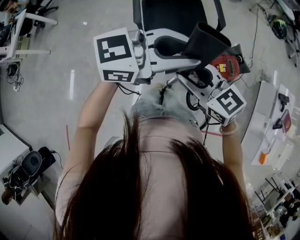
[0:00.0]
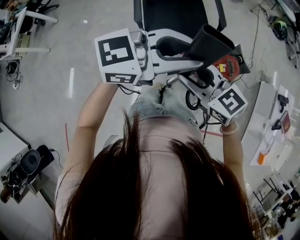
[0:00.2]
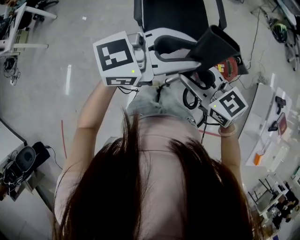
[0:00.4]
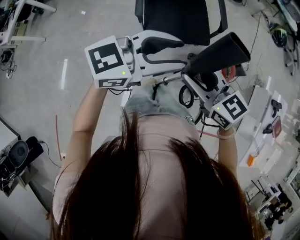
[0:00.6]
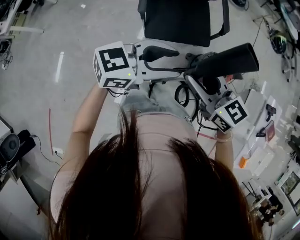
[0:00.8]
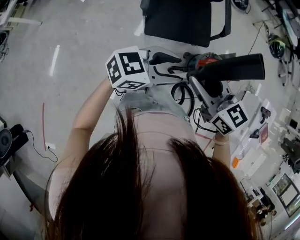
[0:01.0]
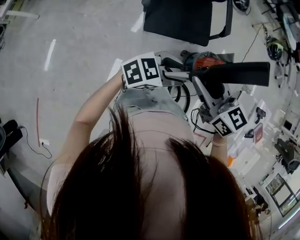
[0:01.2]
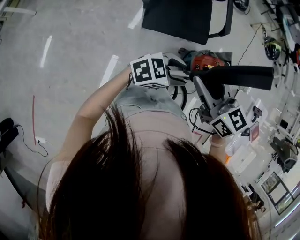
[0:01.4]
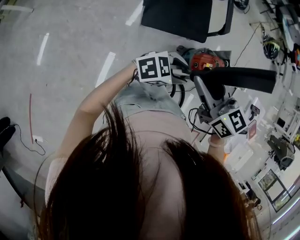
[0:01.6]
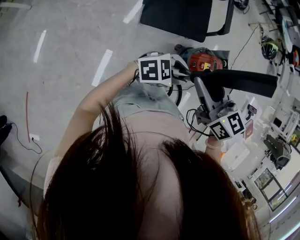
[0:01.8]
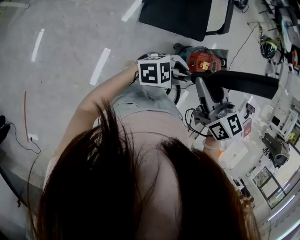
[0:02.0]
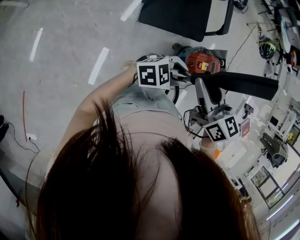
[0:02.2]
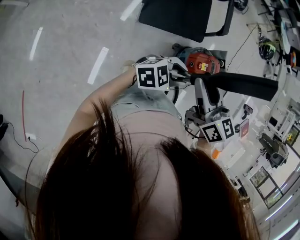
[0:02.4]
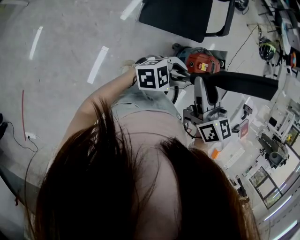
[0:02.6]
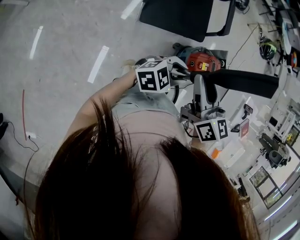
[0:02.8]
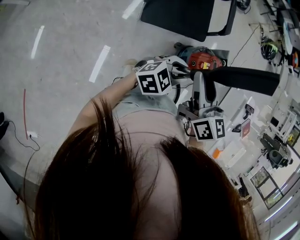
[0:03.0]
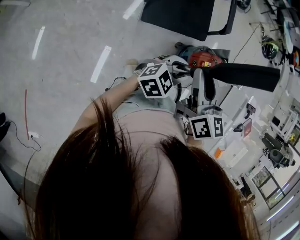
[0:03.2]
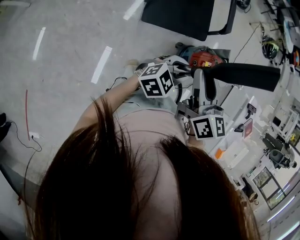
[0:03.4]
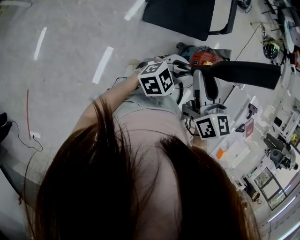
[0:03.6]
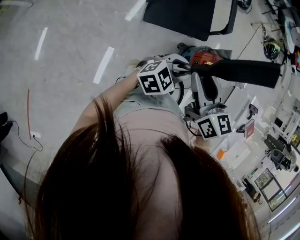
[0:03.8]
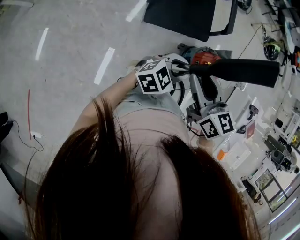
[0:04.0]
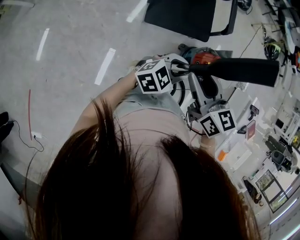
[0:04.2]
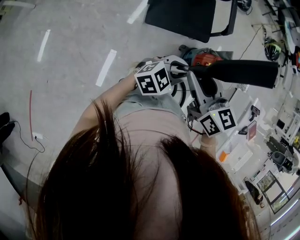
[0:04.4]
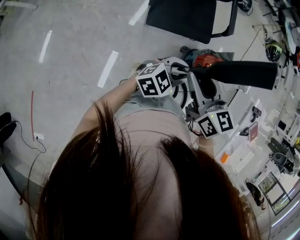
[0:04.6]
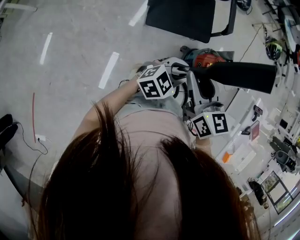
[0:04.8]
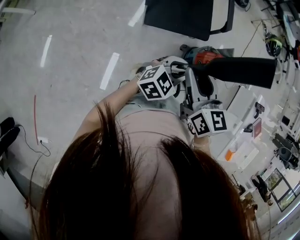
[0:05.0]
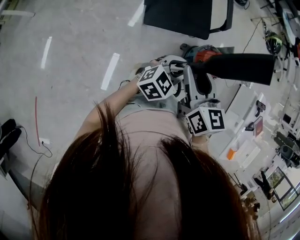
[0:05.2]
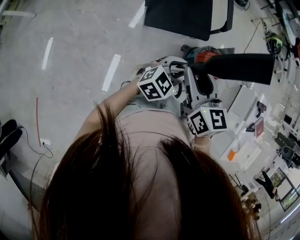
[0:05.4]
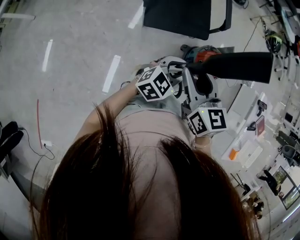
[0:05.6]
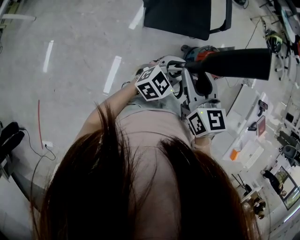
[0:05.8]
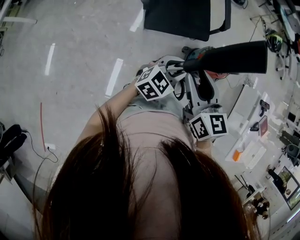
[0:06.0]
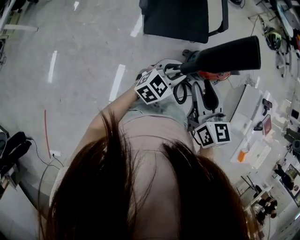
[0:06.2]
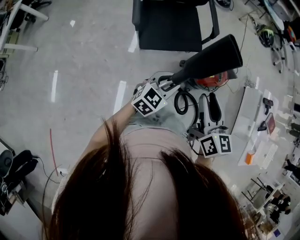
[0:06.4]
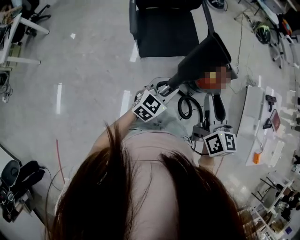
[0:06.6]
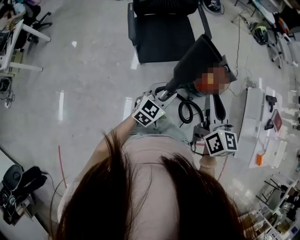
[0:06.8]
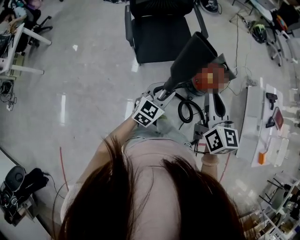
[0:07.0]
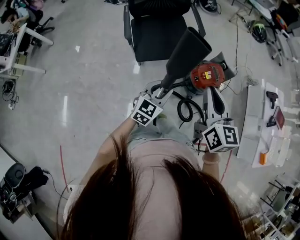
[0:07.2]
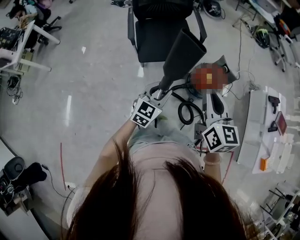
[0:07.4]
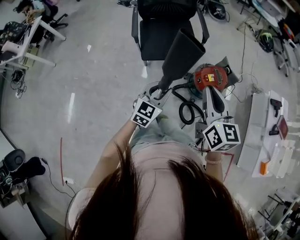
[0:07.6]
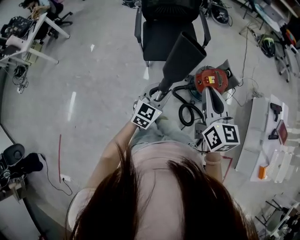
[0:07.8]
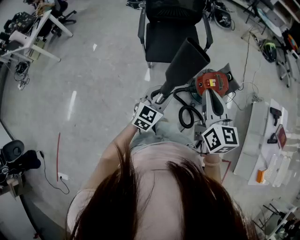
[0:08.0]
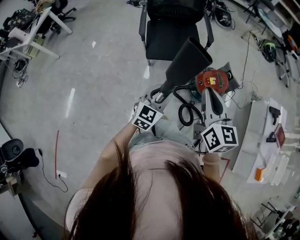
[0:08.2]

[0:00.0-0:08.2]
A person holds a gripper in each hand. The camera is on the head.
0:00.0 to 0:01.6: The left gripper travels downward by approximately 25 cm, swivels about 20 degrees, and opens its fingers.
0:01.6 to 0:03.2: The right gripper swivels about 30 degrees.
0:05.0 to 0:06.6: The right gripper heads to the right, covering approximately 10 cm, and turns by roughly 30 degrees.
0:06.6 to 0:08.2: The right gripper shifts some 15 cm to the right and backward, and closes up; the left gripper shifts roughly 15 cm backward and to the right, and swivels roughly 20 degrees.

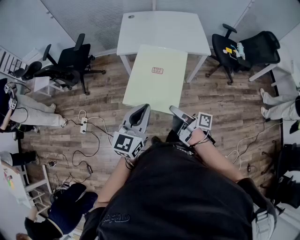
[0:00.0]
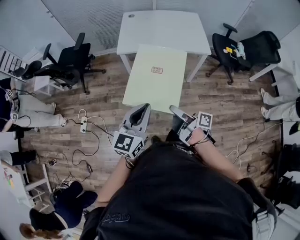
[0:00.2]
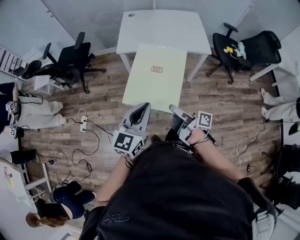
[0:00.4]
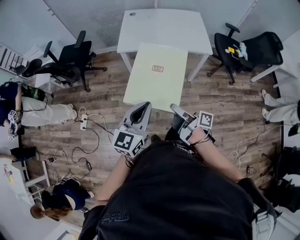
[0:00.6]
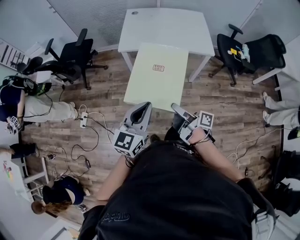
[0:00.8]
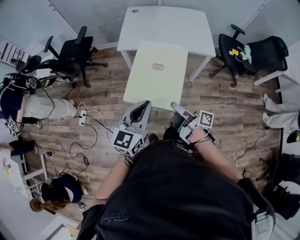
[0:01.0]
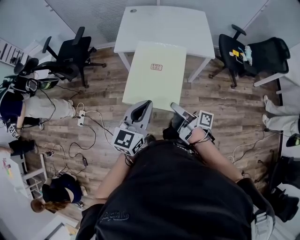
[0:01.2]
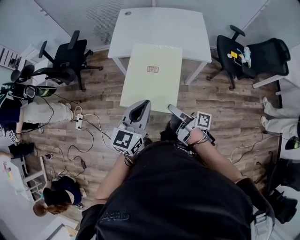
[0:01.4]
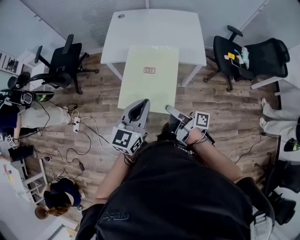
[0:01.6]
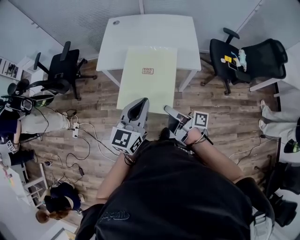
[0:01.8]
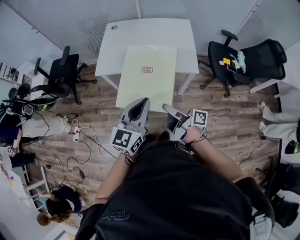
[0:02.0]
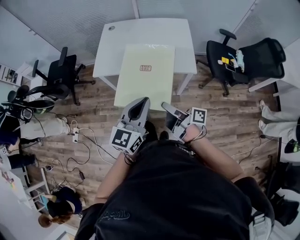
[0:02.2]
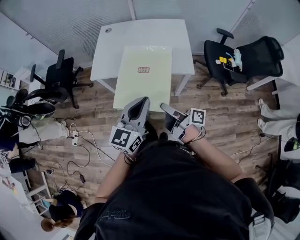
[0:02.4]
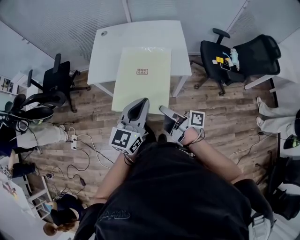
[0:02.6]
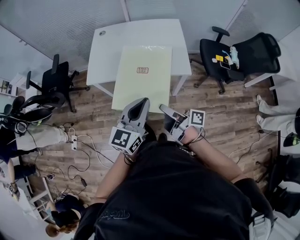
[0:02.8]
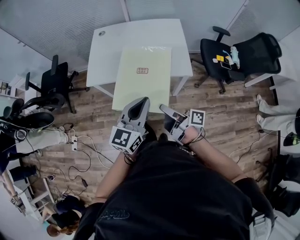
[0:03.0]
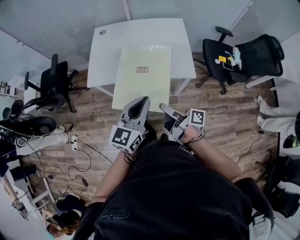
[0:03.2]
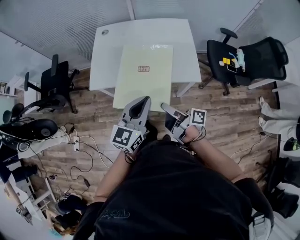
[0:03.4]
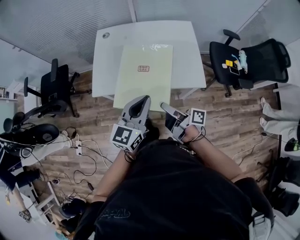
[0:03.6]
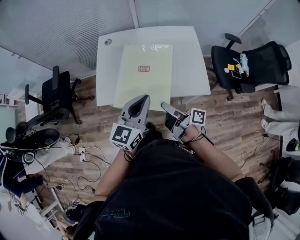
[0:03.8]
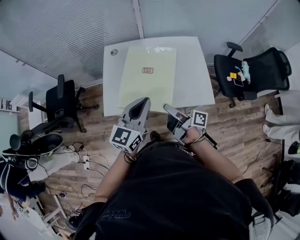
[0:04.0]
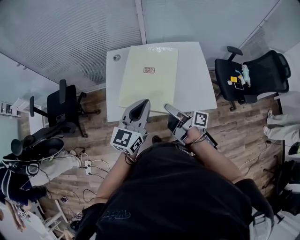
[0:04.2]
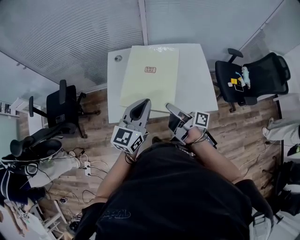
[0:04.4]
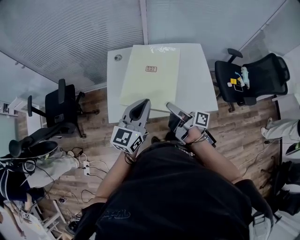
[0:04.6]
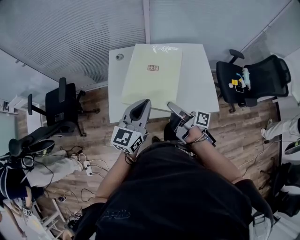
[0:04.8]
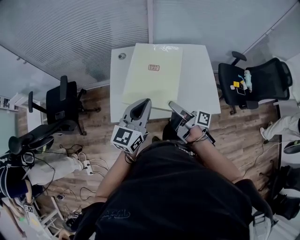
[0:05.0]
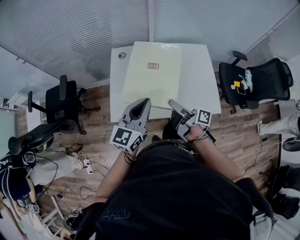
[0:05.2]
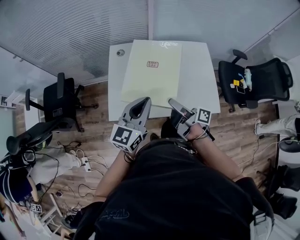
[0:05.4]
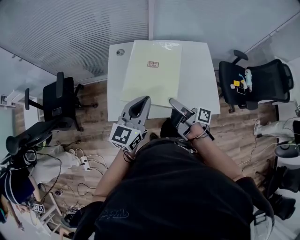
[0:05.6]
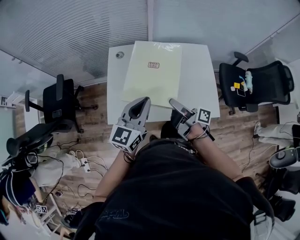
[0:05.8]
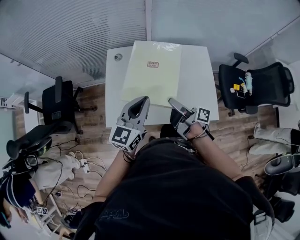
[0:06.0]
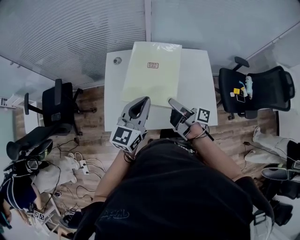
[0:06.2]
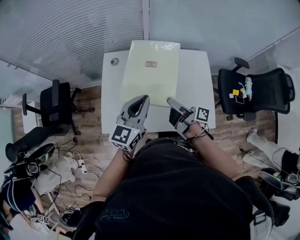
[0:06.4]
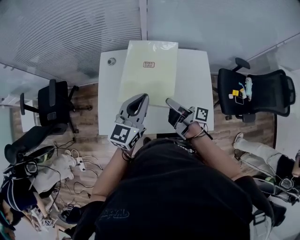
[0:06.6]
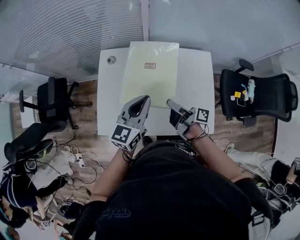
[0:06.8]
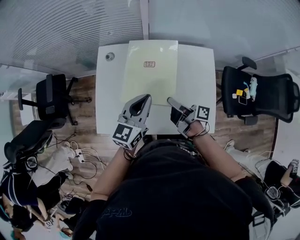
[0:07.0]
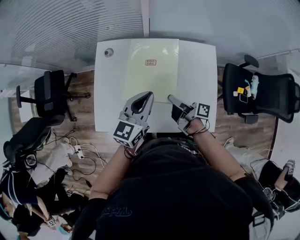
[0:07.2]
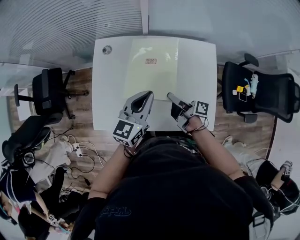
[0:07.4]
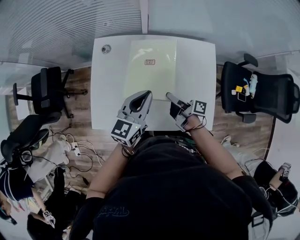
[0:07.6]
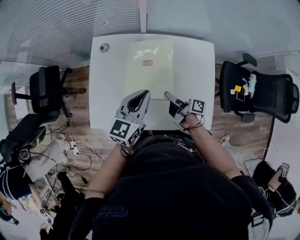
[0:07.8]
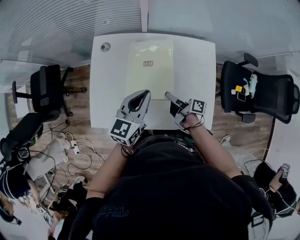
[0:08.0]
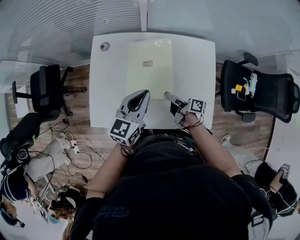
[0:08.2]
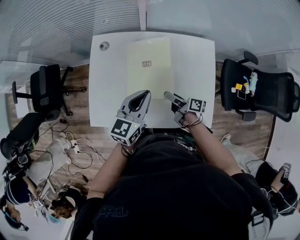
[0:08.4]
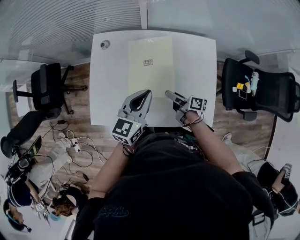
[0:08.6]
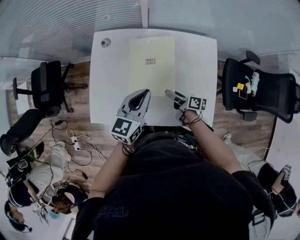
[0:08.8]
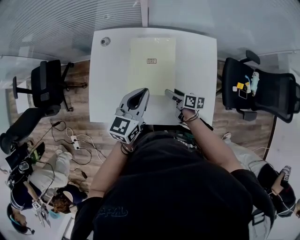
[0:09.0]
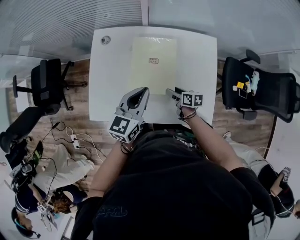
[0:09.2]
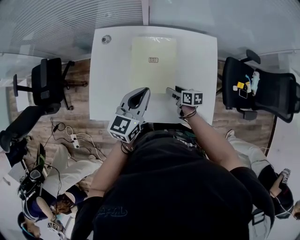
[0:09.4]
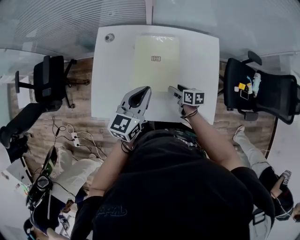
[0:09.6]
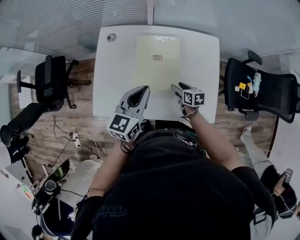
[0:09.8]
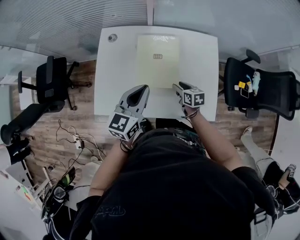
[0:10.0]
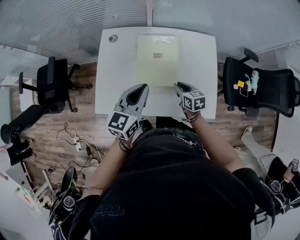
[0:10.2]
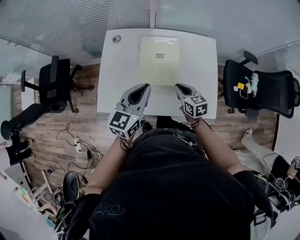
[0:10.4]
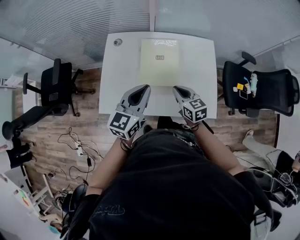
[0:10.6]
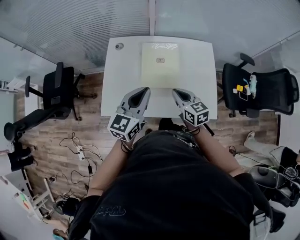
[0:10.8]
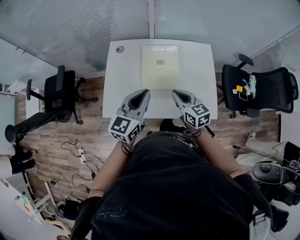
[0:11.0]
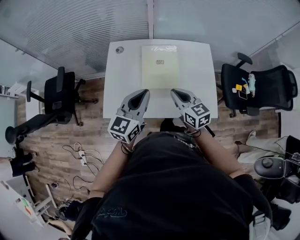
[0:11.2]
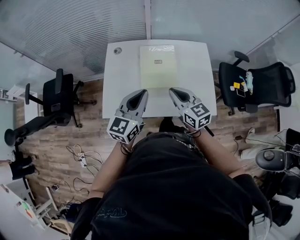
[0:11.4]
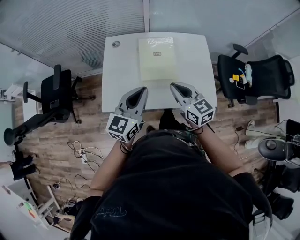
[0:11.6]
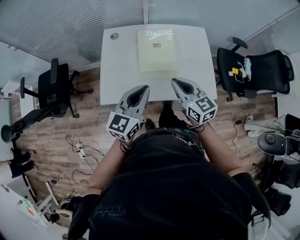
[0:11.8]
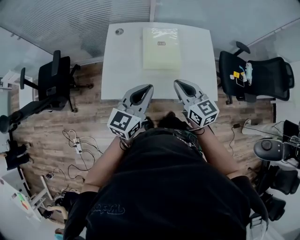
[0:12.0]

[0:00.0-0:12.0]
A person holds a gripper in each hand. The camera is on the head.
0:00.0 to 0:01.6: Both grippers travel together to the right and forward, some 20 cm.
0:01.6 to 0:03.0: The right gripper travels forward and to the right by some 10 cm; the left gripper goes roughly 15 cm to the right and forward.
0:03.0 to 0:04.4: The two grippers go roughly 30 cm forward and to the left.
0:04.4 to 0:06.0: The grippers both shift forward by some 10 cm.
0:06.0 to 0:07.6: The left gripper is displaced forward, downward and to the right by roughly 15 cm. Meanwhile the right gripper is displaced downward, forward and to the right by roughly 15 cm.
0:07.6 to 0:09.0: The right gripper goes about 10 cm downward, and changes its angle by roughly 30 degrees.
0:09.0 to 0:10.4: The right gripper is displaced upward by roughly 15 cm, rotates around the line of its fingers by approximately 40 degrees, counterclockwise from behind, and closes up. Meanwhile the left gripper travels backward and upward by about 10 cm.
0:10.4 to 0:12.0: The left gripper moves backward, roughly 10 cm. The right gripper goes approximately 20 cm upward, backward and to the left.

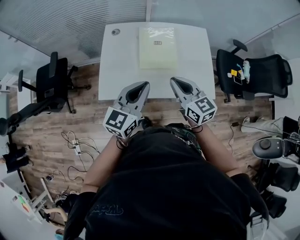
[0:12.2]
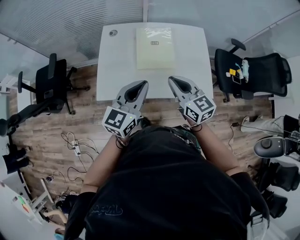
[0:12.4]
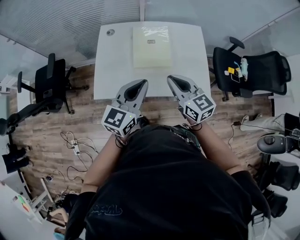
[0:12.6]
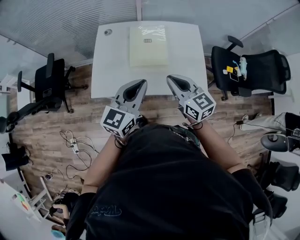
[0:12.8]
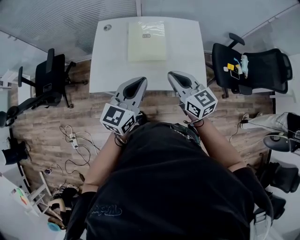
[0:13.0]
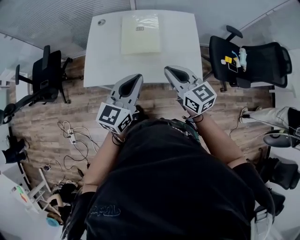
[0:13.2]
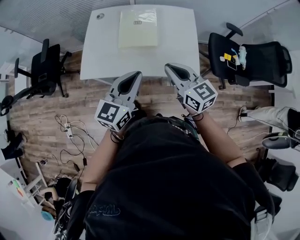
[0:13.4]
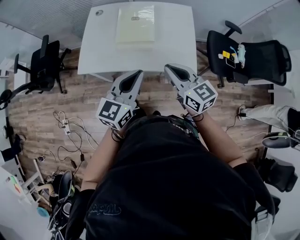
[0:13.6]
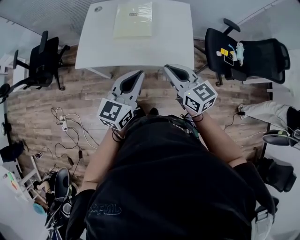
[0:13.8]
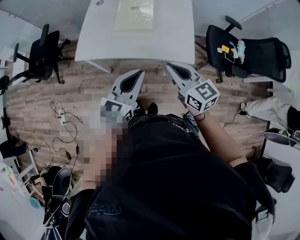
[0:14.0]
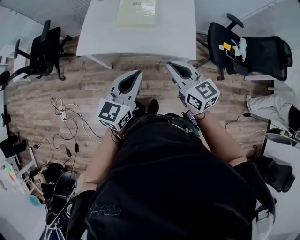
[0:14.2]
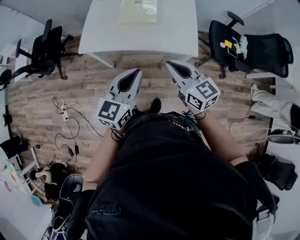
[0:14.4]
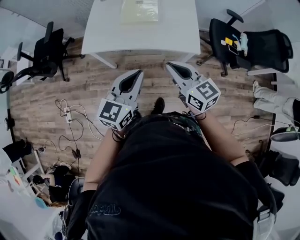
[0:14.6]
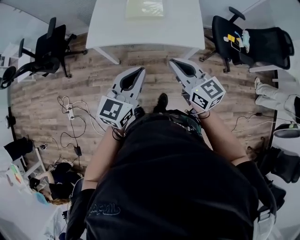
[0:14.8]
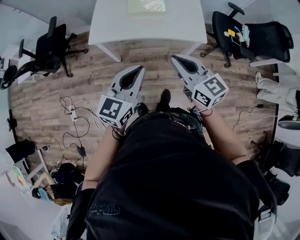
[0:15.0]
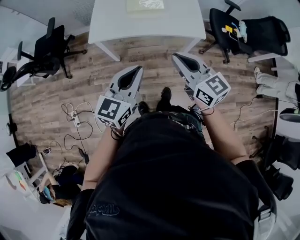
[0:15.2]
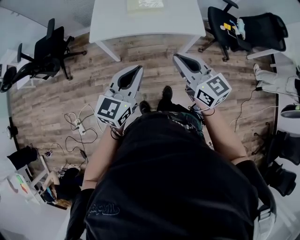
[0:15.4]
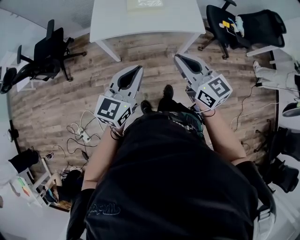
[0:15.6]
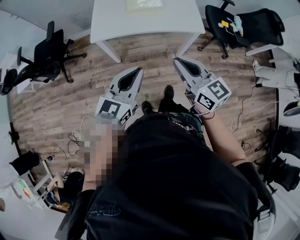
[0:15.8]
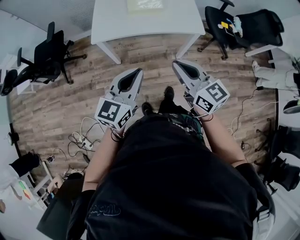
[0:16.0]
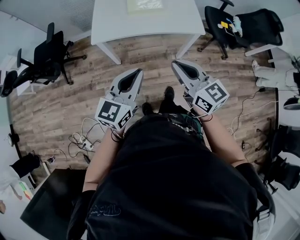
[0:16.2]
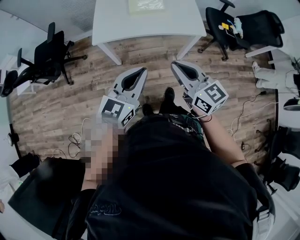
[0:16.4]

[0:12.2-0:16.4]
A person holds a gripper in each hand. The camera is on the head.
0:12.2 to 0:13.6: Both grippers move to the right and backward, about 15 cm.
0:13.6 to 0:15.0: Both grippers move backward and to the left, about 20 cm.
0:15.0 to 0:16.4: The right gripper travels backward and to the left by some 10 cm. Meanwhile the left gripper travels to the left and backward by roughly 10 cm.
